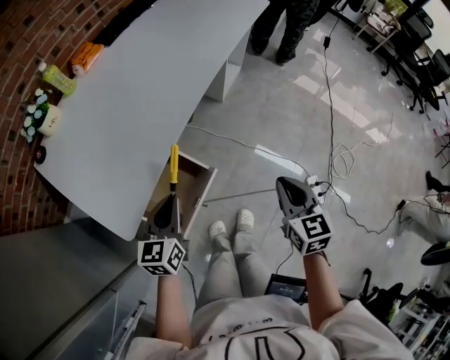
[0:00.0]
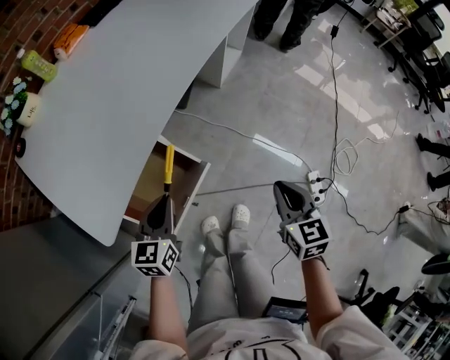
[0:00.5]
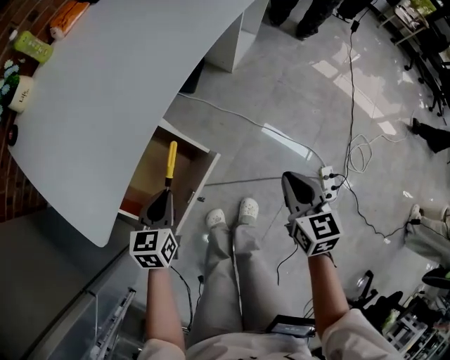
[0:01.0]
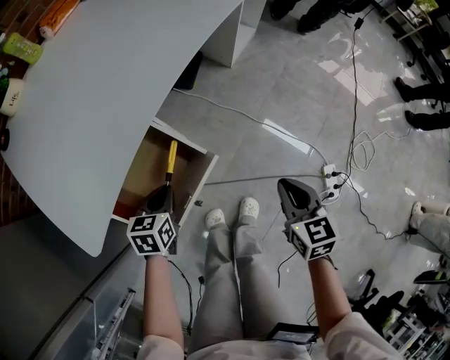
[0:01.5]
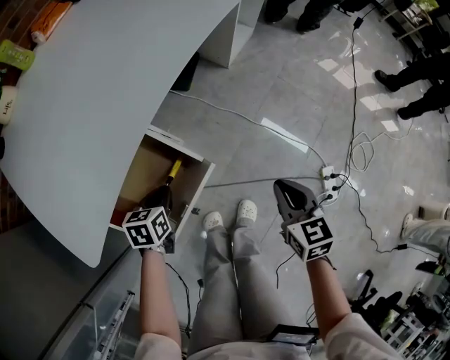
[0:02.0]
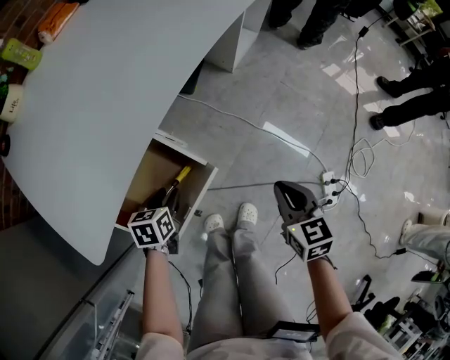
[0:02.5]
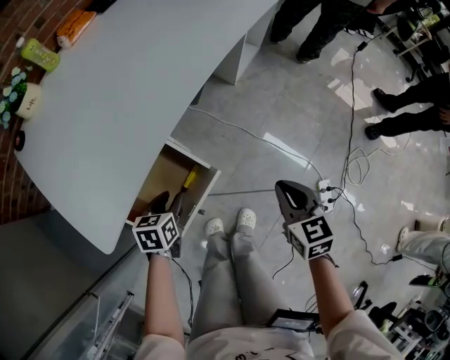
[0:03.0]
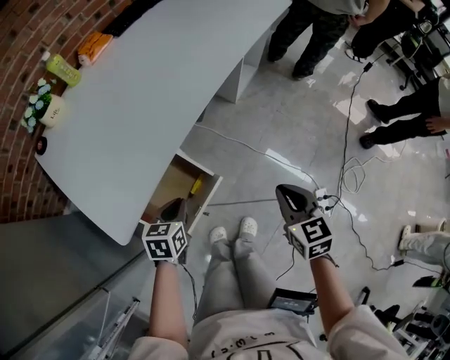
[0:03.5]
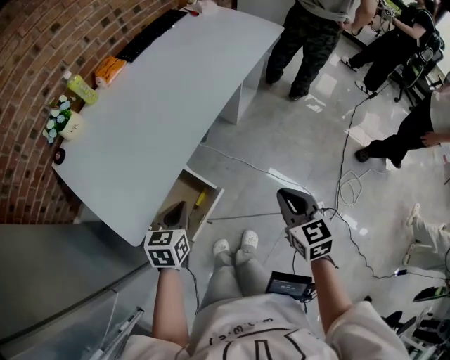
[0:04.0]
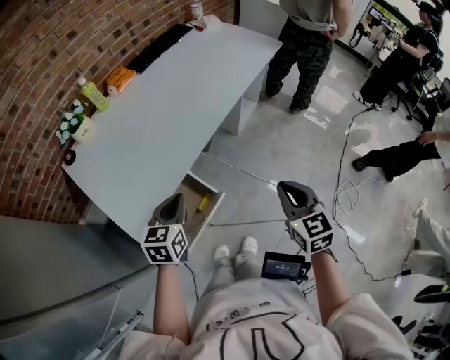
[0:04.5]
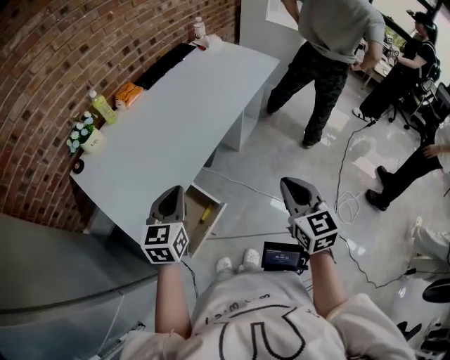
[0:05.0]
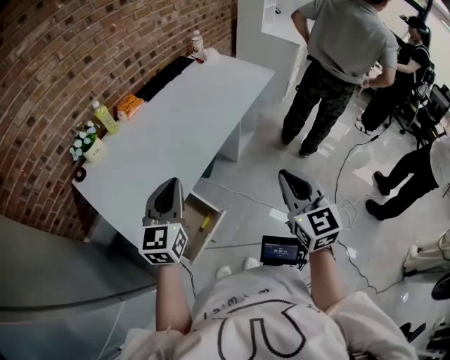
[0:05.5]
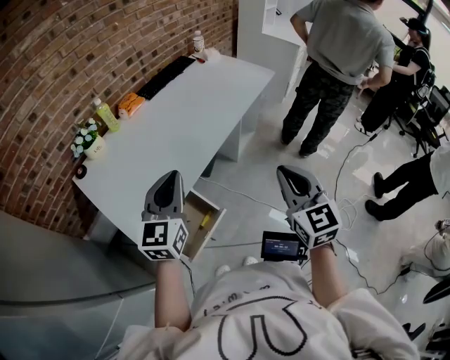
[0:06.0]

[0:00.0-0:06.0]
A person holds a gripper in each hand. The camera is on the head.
0.0 to 2.0 s: The two grippers go about 25 cm downward. The left gripper tips its fingers downward by approximately 30 degrees.
2.0 to 4.0 s: Both grippers move upward, about 25 cm. The left gripper opens, then closes again.
4.0 to 6.0 s: The two grippers go approximately 25 cm upward. The right gripper changes its angle by approximately 30 degrees; the left gripper angles its fingers upward, by some 40 degrees.

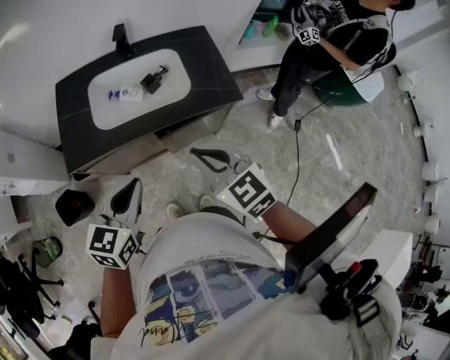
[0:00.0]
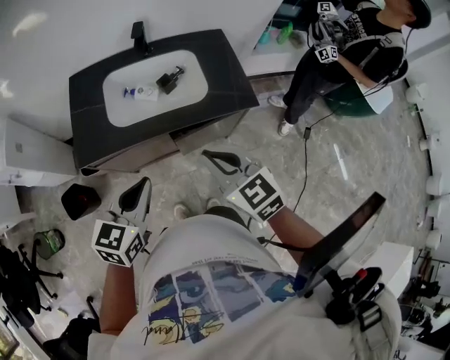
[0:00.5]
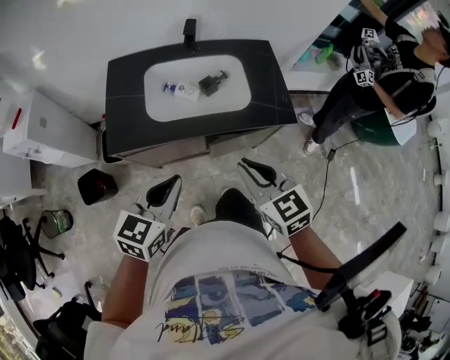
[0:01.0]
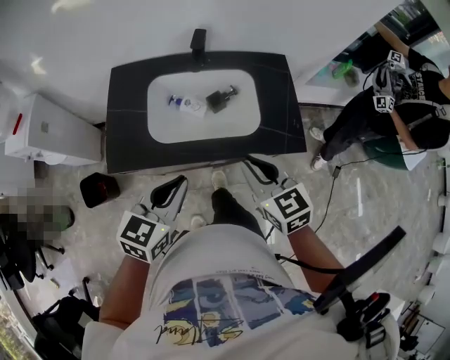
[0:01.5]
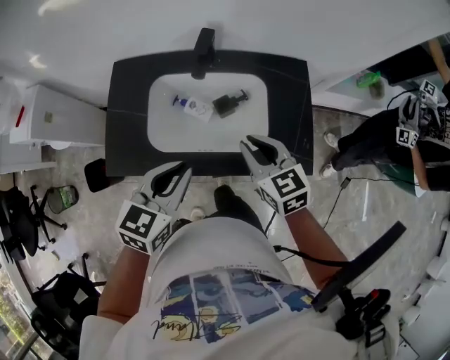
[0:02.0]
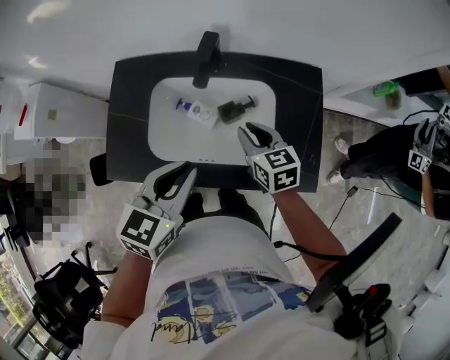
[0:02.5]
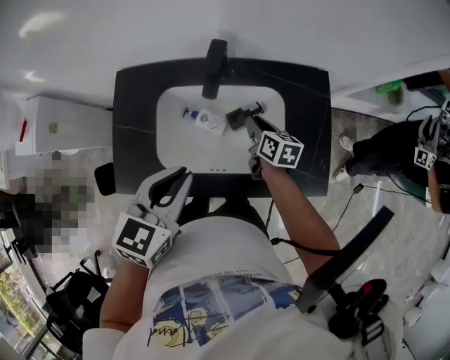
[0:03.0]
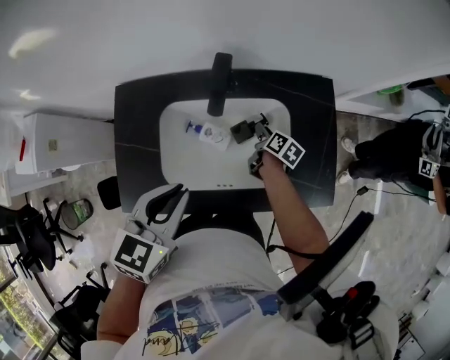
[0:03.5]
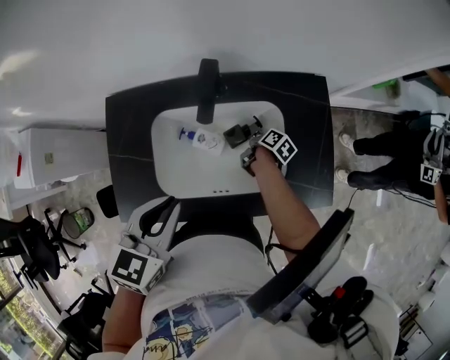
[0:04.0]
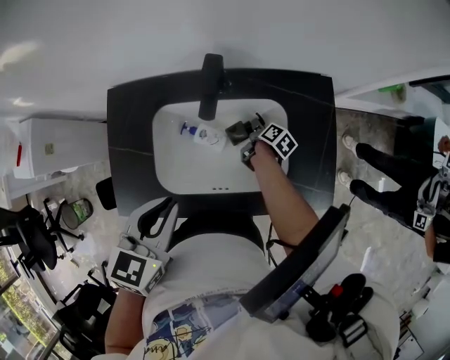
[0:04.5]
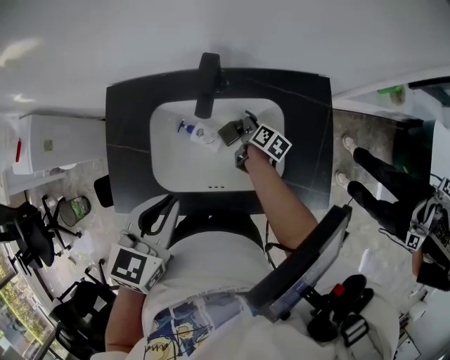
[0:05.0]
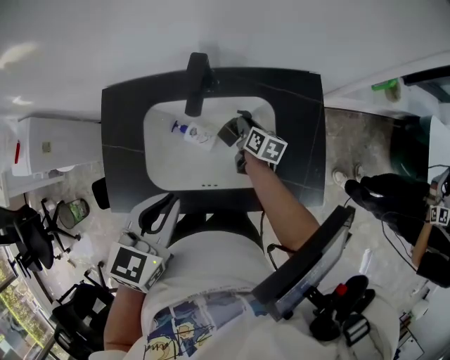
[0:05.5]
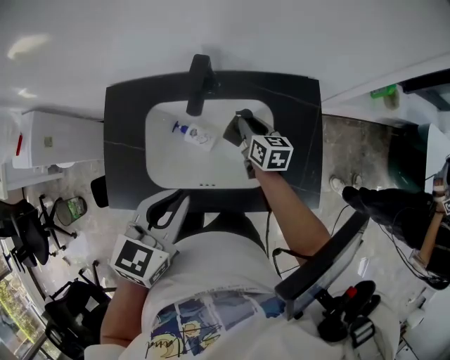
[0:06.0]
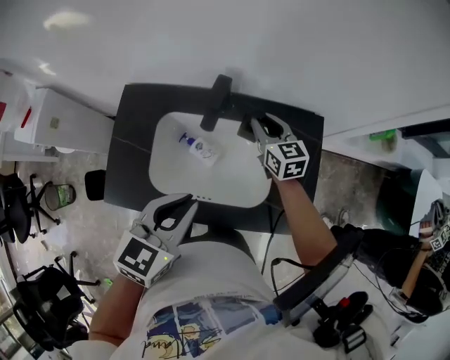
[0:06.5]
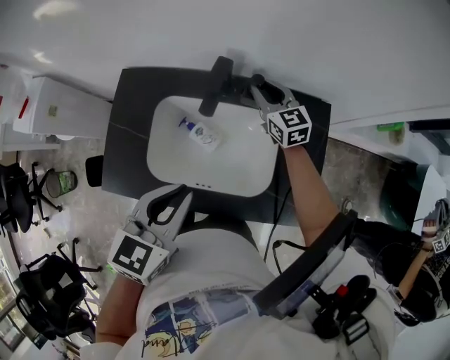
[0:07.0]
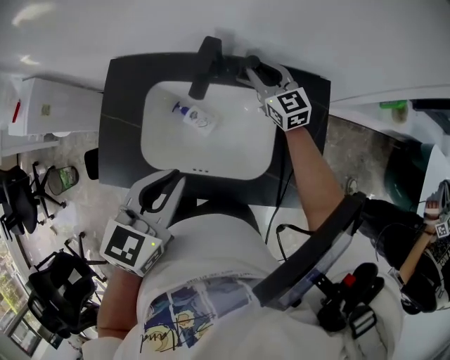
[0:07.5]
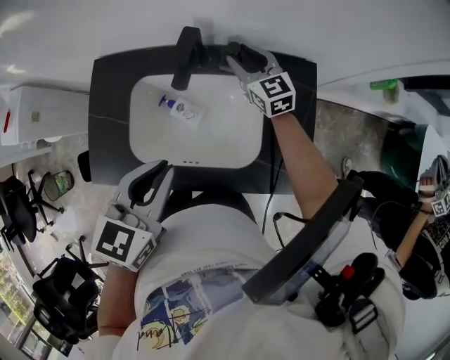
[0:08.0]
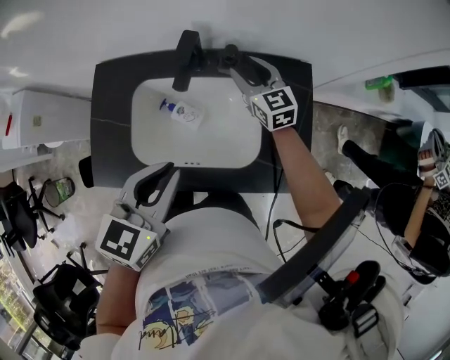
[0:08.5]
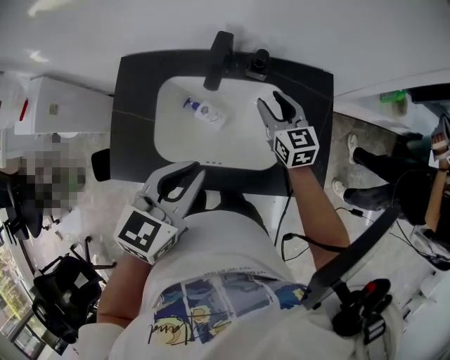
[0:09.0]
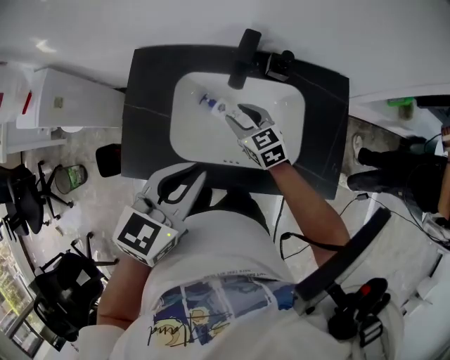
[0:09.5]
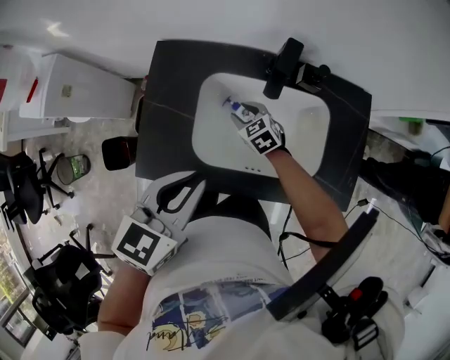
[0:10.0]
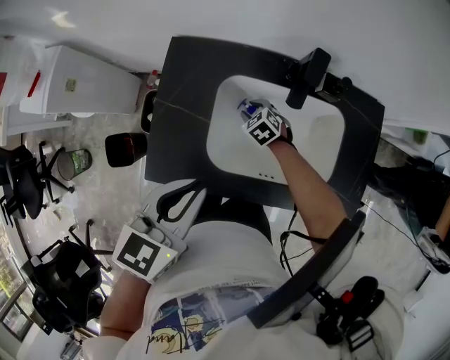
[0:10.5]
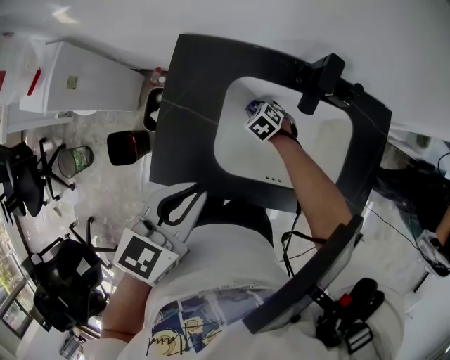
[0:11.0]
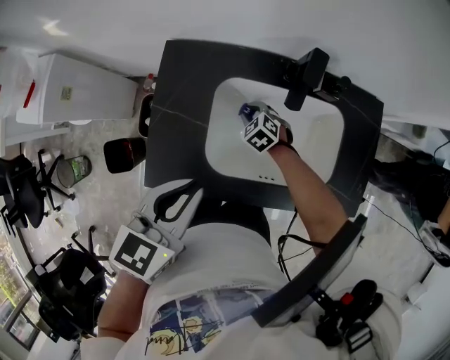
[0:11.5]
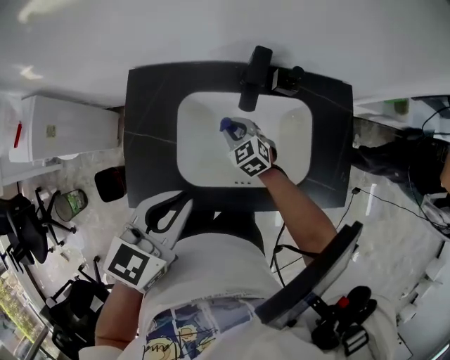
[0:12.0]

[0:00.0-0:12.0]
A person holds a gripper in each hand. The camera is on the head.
0.0 to 2.0 s: Both grippers move forward, roughly 25 cm.
2.0 to 4.0 s: The left gripper moves forward and to the left, roughly 10 cm. The right gripper heads downward and forward, covering about 35 cm, and twists about 80 degrees clockwise, seen from behind.
4.0 to 6.0 s: The right gripper shifts some 15 cm upward, and rotates around the line of its fingers by some 50 degrees, counterclockwise from behind. Meanwhile the left gripper is displaced to the right by about 5 cm.
6.0 to 8.0 s: The right gripper is displaced forward and upward by roughly 15 cm, changes its angle by approximately 40 degrees, and opens up.
8.0 to 10.0 s: The right gripper heads to the left, downward and backward, covering some 30 cm, and points its fingers approximately 30 degrees further downward. Meanwhile the left gripper shifts about 15 cm to the left.
10.0 to 12.0 s: The right gripper moves about 10 cm downward and comes back, and closes.

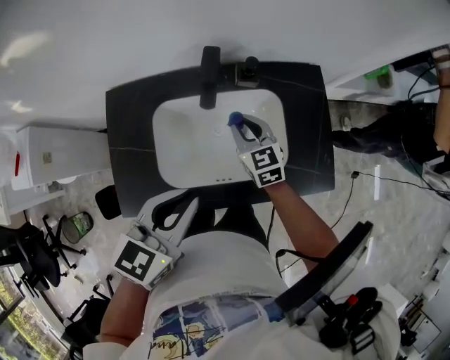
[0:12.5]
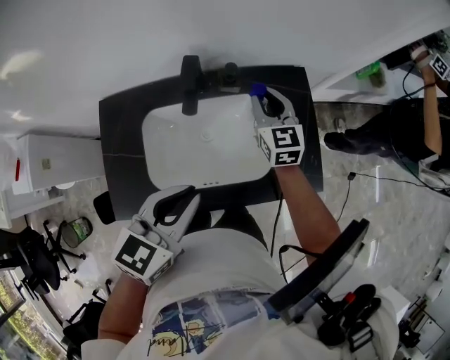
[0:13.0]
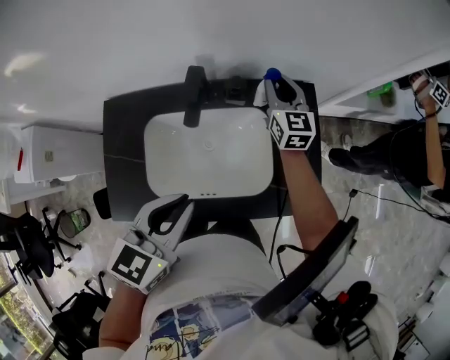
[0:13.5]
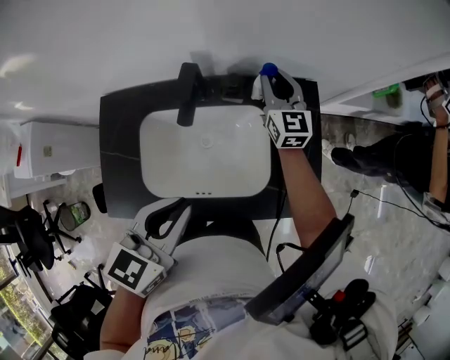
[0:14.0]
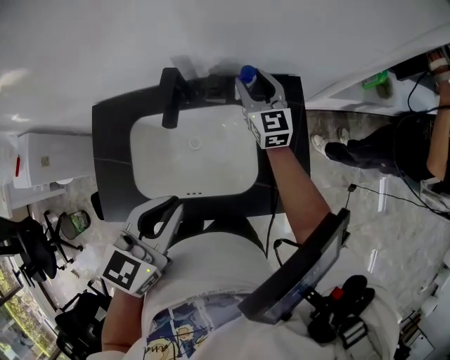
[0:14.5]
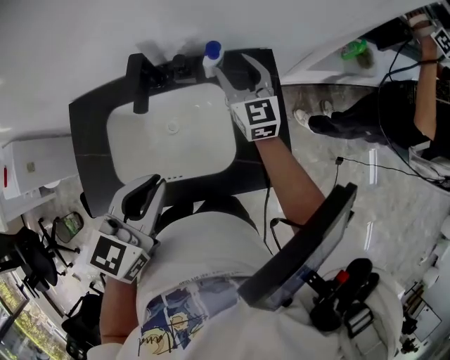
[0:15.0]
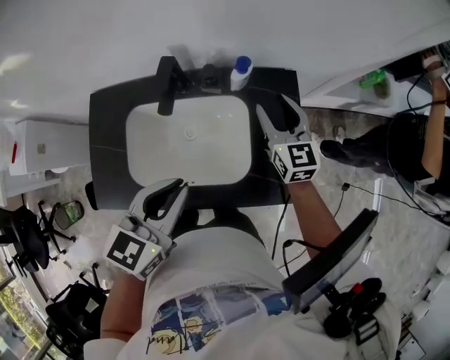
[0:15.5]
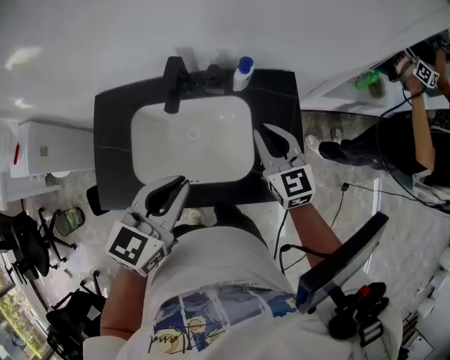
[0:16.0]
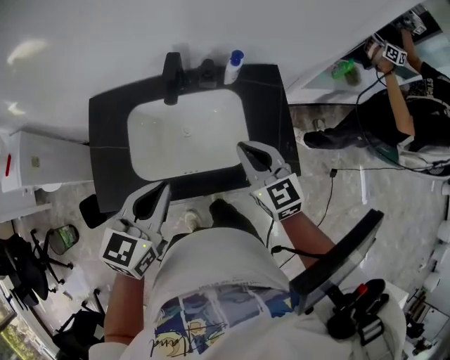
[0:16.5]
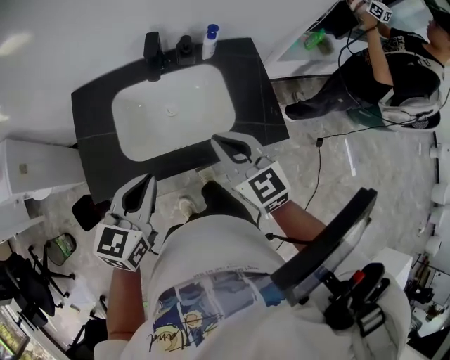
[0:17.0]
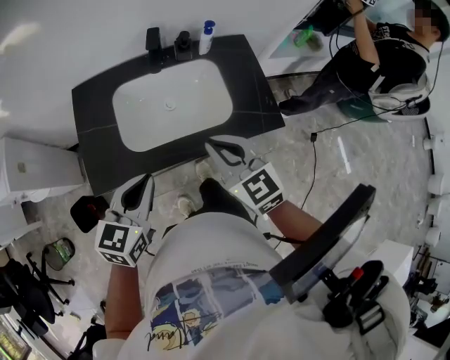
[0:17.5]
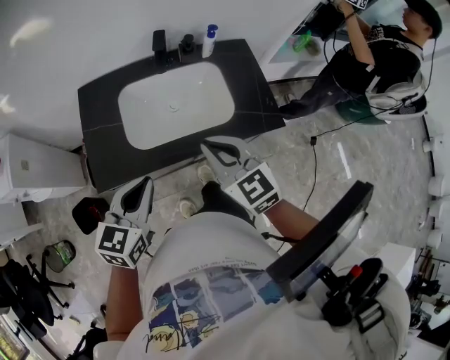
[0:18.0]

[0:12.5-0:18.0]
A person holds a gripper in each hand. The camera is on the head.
12.5 to 14.5 s: The right gripper shifts approximately 20 cm forward and to the right, changes its angle by approximately 20 degrees, and opens. Meanwhile the left gripper heads to the right, covering about 10 cm.
14.5 to 16.0 s: The right gripper shifts roughly 20 cm backward, and closes.
16.0 to 18.0 s: The two grippers go roughly 25 cm backward and to the left.

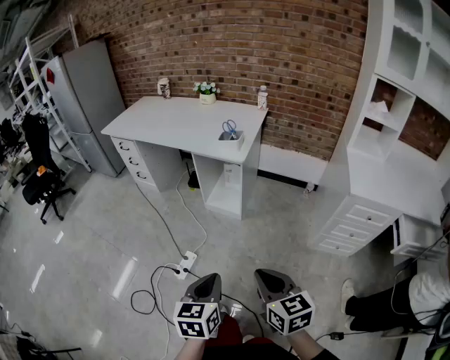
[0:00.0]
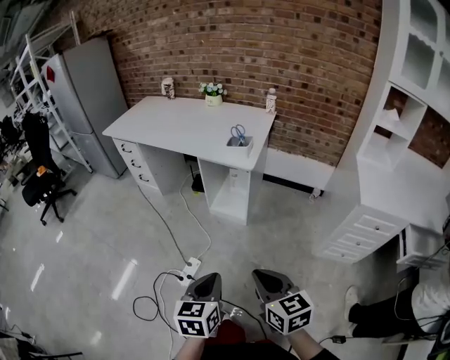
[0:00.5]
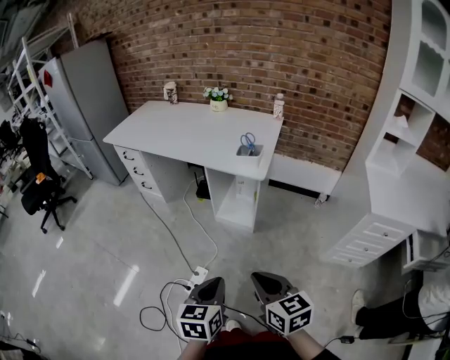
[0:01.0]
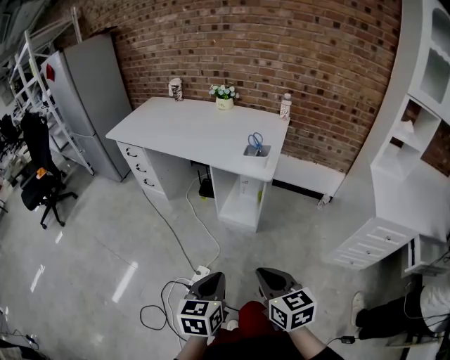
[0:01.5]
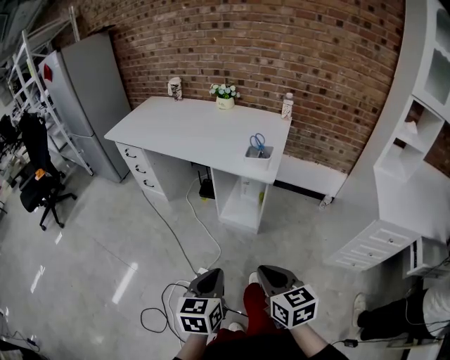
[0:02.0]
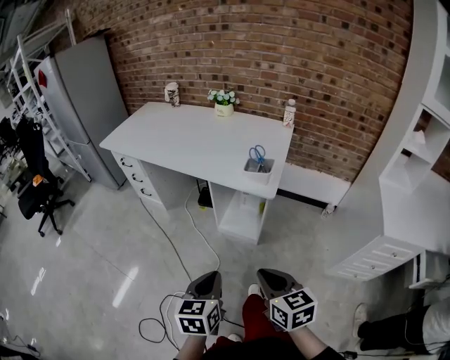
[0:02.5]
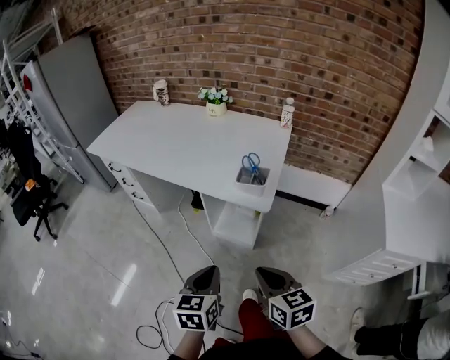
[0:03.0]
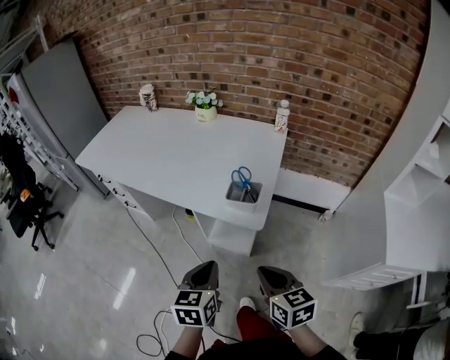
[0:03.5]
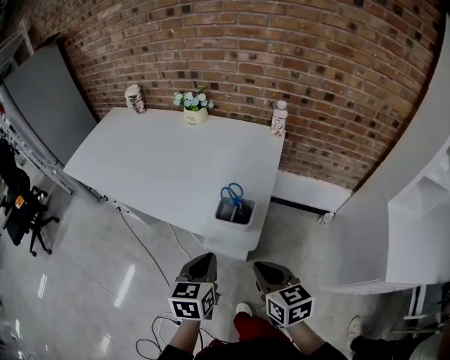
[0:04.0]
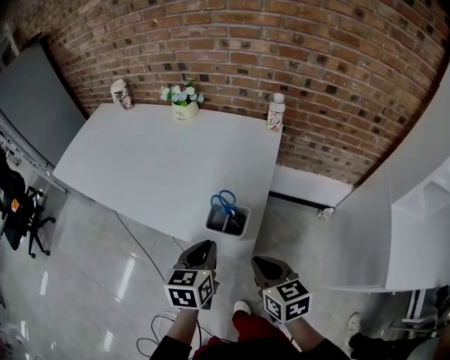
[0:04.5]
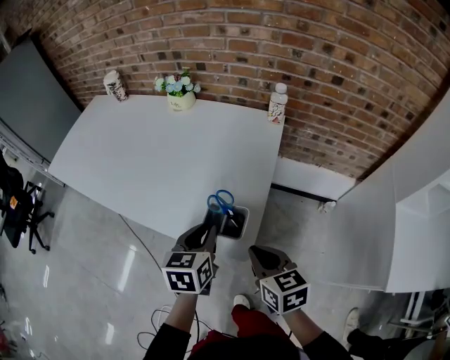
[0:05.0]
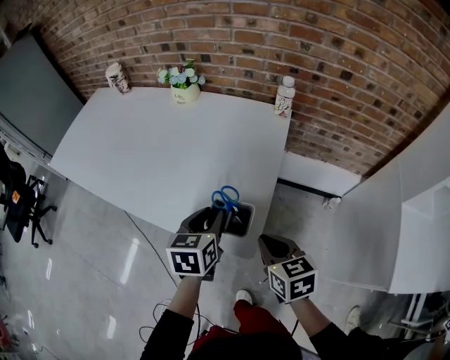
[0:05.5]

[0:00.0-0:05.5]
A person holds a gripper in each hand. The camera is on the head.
0.0 to 2.0 s: The two grippers go some 20 cm forward and to the left.
2.0 to 3.5 s: The left gripper is displaced forward by approximately 25 cm, while the right gripper shifts approximately 25 cm forward and to the right.
3.5 to 5.5 s: Both grippers move forward, approximately 25 cm. The left gripper opens up.
